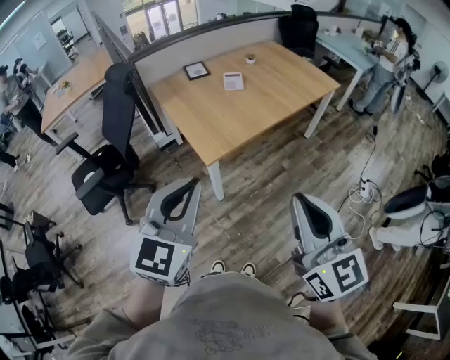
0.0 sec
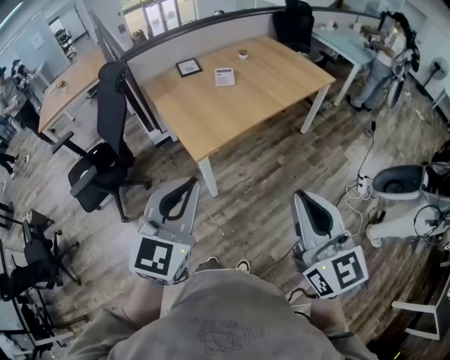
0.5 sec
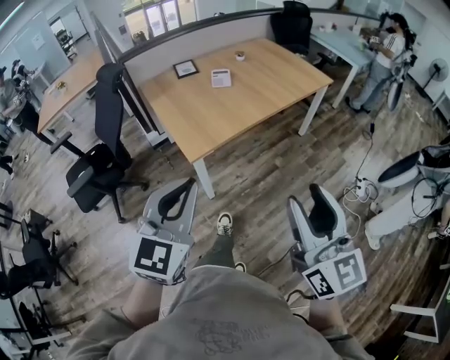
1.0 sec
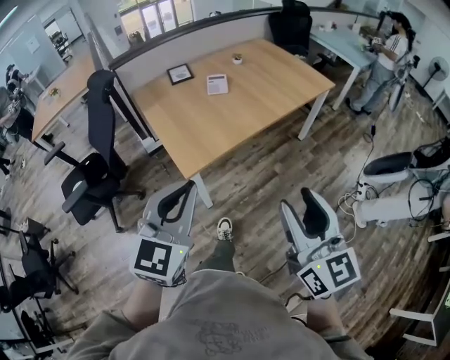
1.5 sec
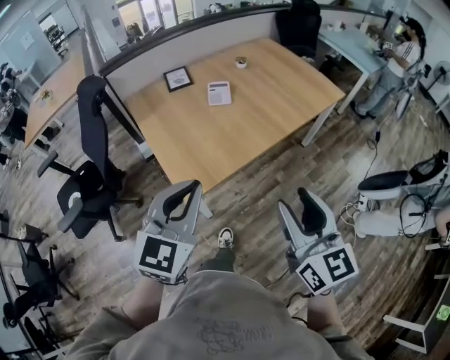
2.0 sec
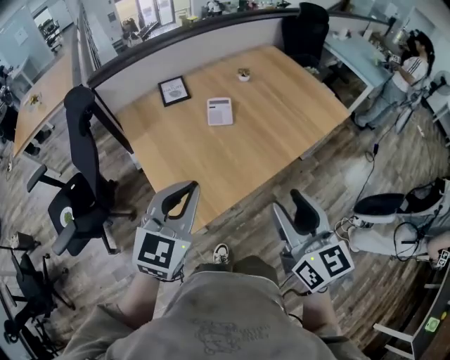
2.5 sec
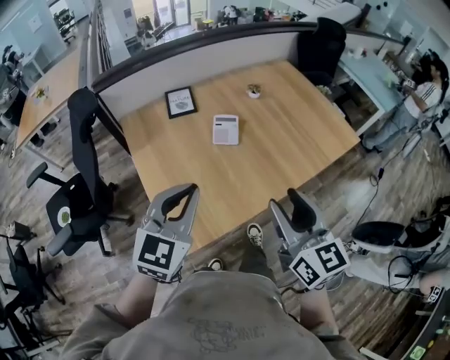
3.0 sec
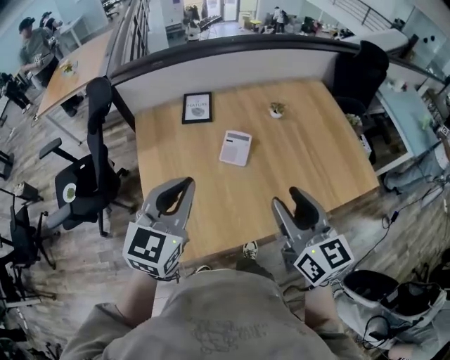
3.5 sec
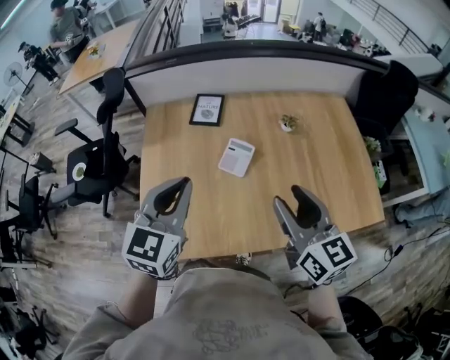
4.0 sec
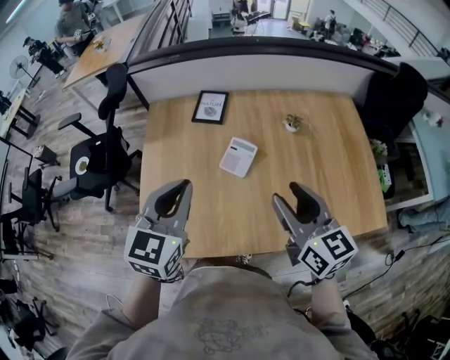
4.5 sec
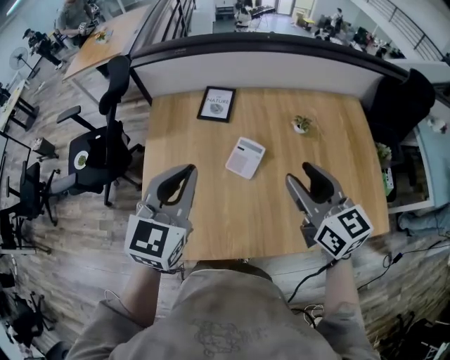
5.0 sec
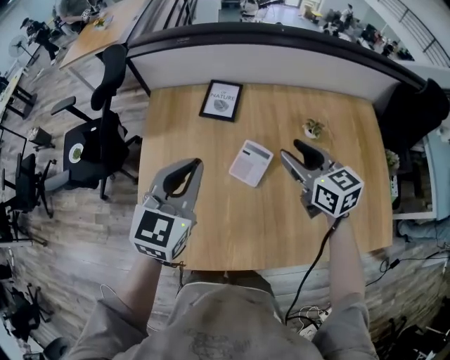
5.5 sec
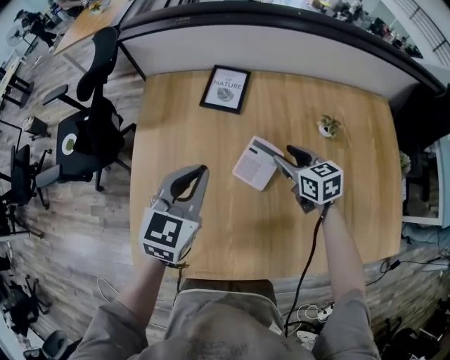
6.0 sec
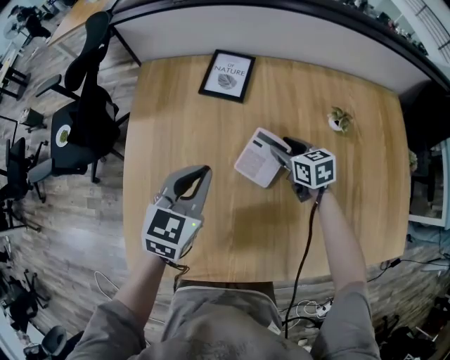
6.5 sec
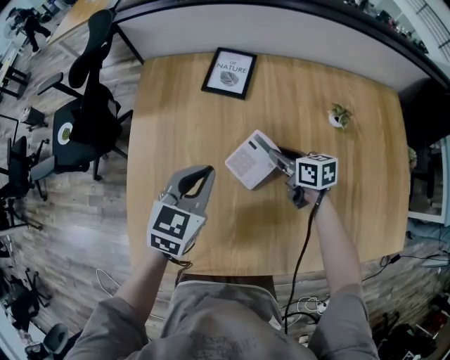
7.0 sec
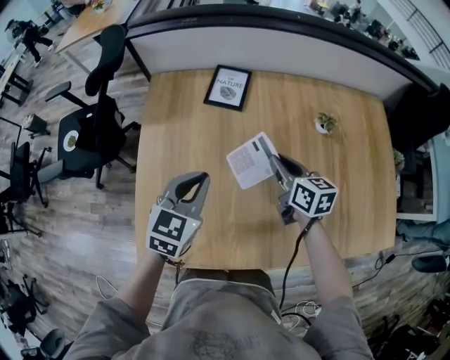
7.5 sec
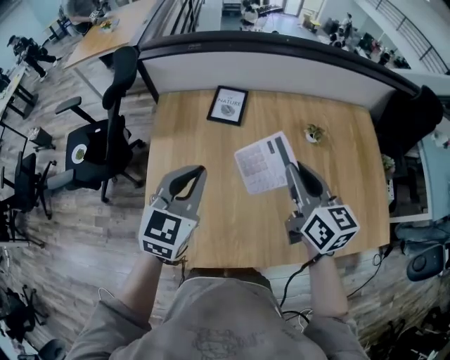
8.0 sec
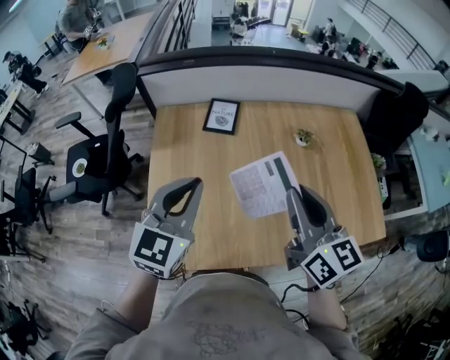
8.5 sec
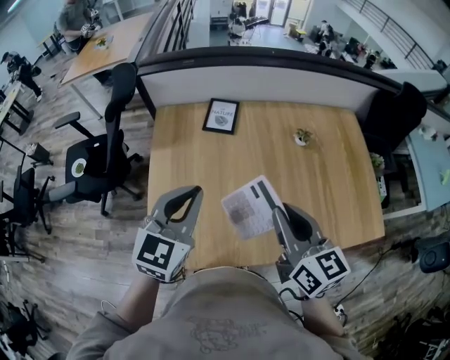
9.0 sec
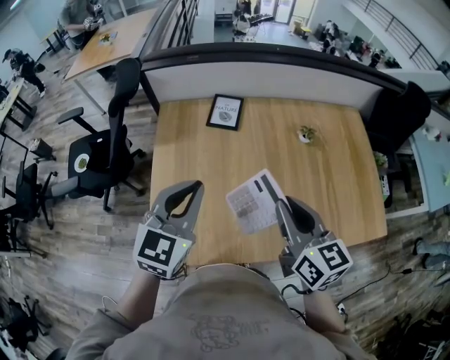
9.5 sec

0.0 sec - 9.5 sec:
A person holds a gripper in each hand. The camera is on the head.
0.0 sec - 2.0 sec: The grippers both shift forward by about 25 cm. The right gripper opens.
2.0 sec - 4.0 sec: The right gripper changes place by approximately 50 cm, and turns by about 30 degrees. The left gripper moves about 40 cm, and turns by approximately 30 degrees.
4.0 sec - 5.5 sec: The right gripper shifts approximately 25 cm forward and downward, while the left gripper is displaced forward and downward by about 15 cm.
5.5 sec - 7.5 sec: Both grippers travel together downward, some 10 cm. The right gripper changes its angle by about 20 degrees, and closes its fingers.
7.5 sec - 9.5 sec: Both grippers move upward and backward, about 25 cm.

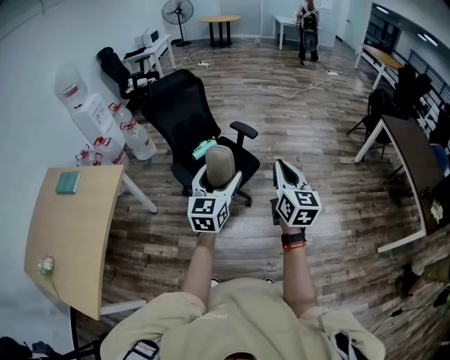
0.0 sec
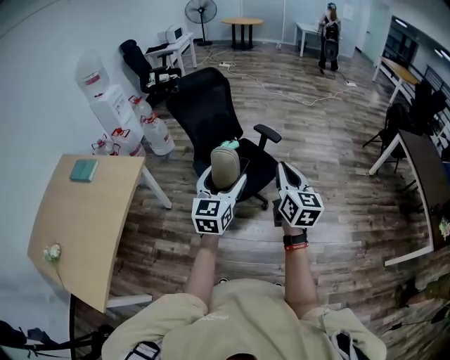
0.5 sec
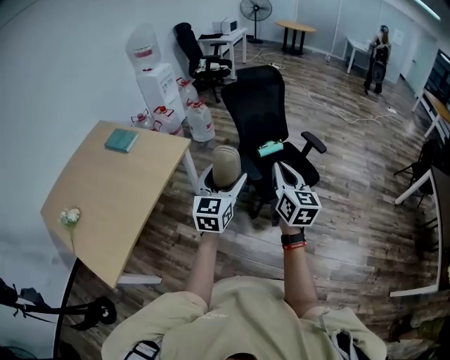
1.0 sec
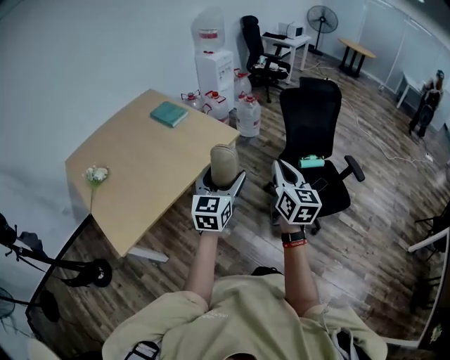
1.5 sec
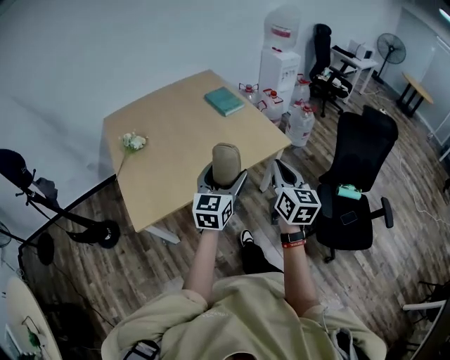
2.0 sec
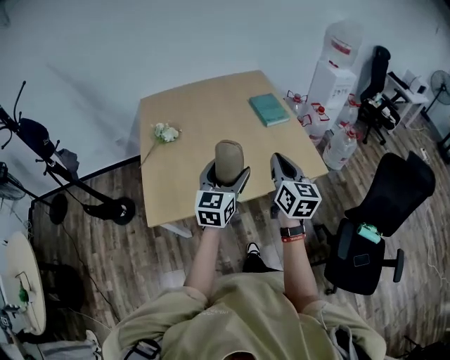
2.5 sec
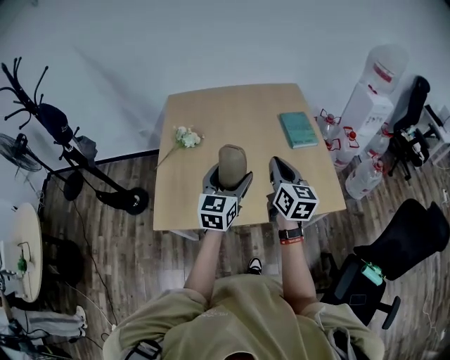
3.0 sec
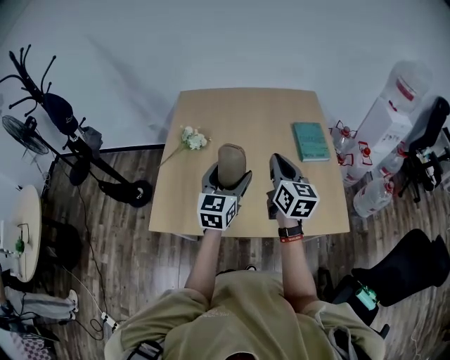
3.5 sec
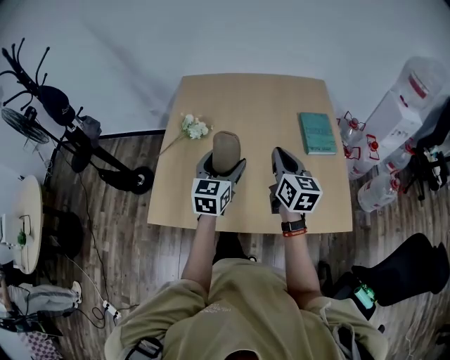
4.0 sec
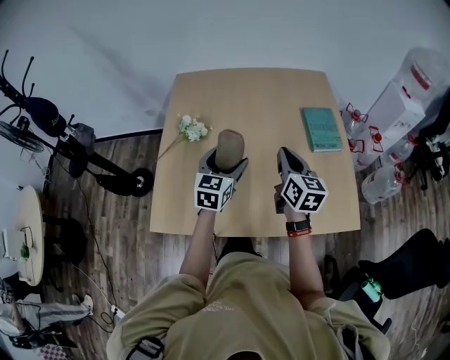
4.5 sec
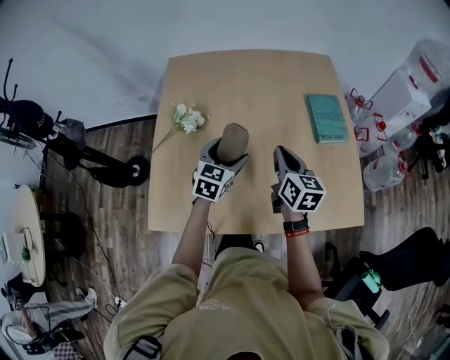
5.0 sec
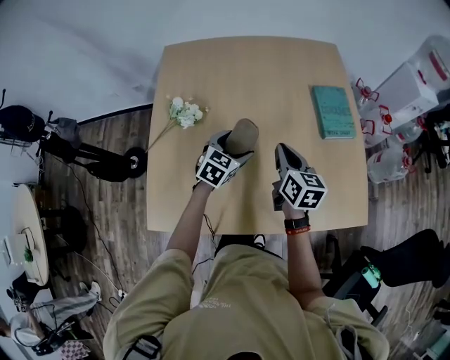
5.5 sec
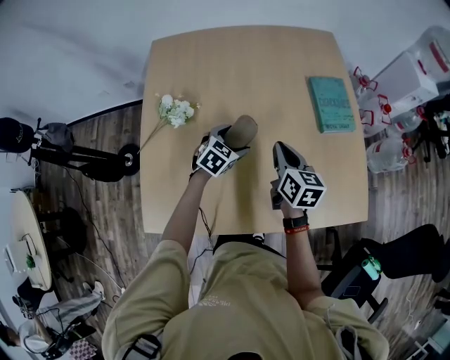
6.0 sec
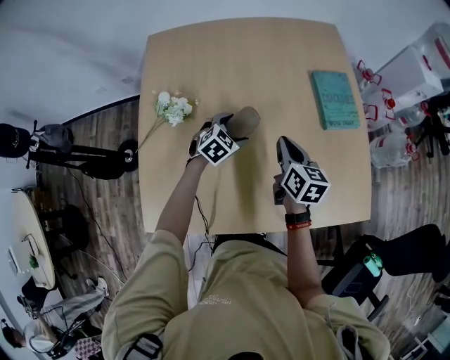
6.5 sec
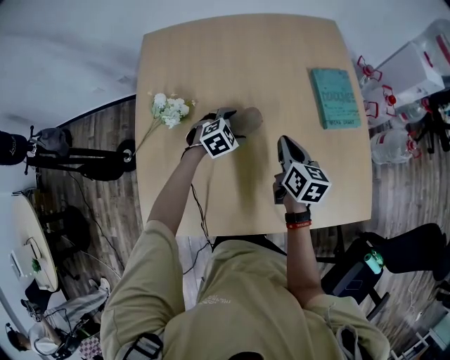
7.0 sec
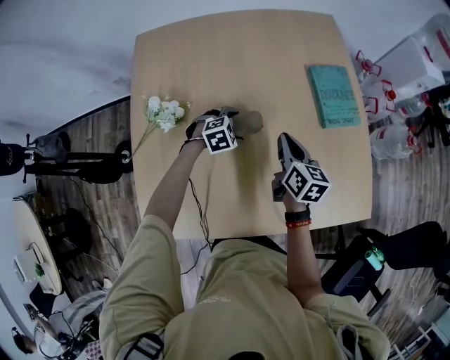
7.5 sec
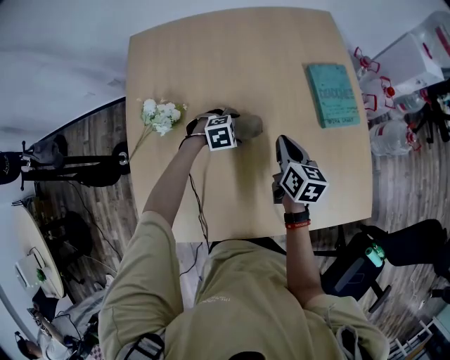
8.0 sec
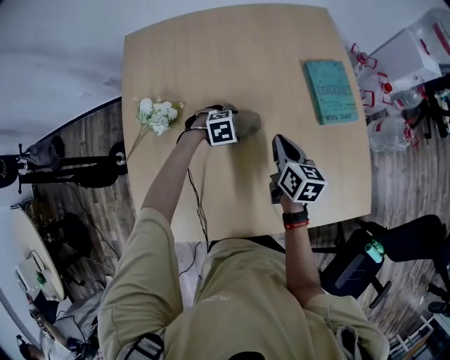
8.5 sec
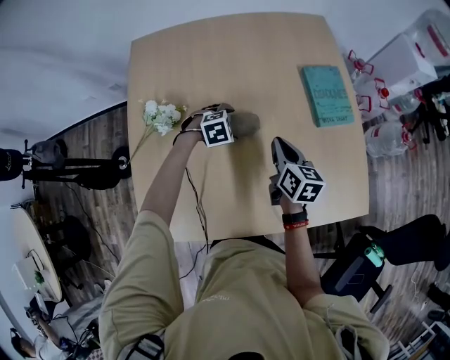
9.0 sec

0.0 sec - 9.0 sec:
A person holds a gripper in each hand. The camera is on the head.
0.0 sec - 2.0 sec: Both grippers are carried some 70 cm. The right gripper changes its angle by about 60 degrees. The left gripper swivels some 50 degrees.
2.0 sec - 4.5 sec: The two grippers travel together, approximately 50 cm. The right gripper turns by approximately 30 degrees. The left gripper swivels about 30 degrees.
4.5 sec - 7.0 sec: Both grippers travel together downward and forward, about 25 cm. The left gripper tips its fingers downward by about 40 degrees.

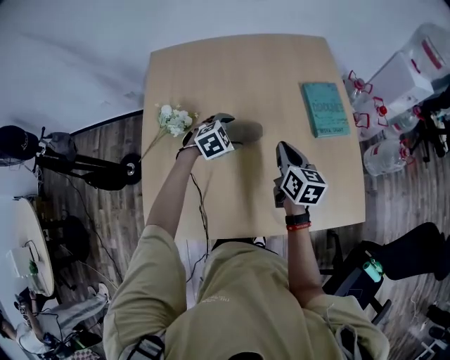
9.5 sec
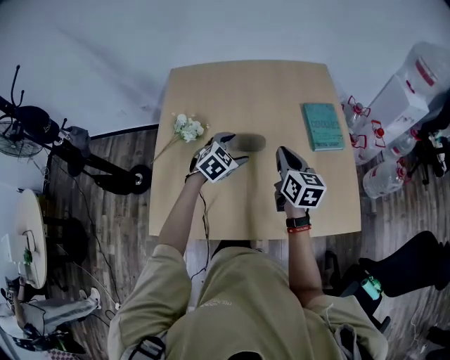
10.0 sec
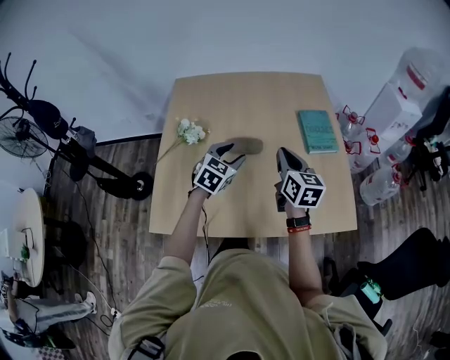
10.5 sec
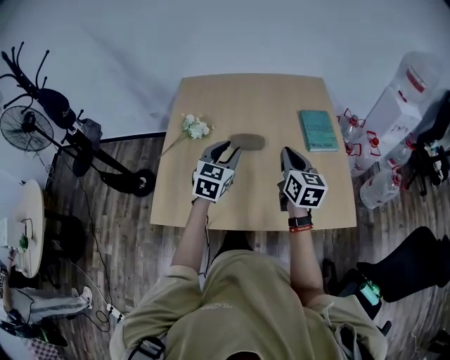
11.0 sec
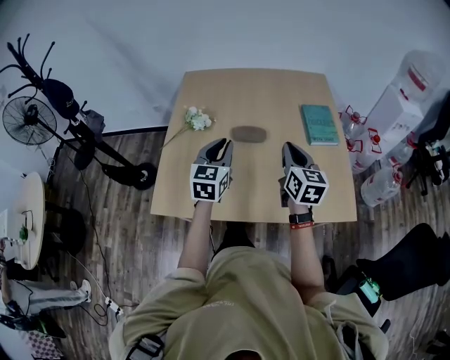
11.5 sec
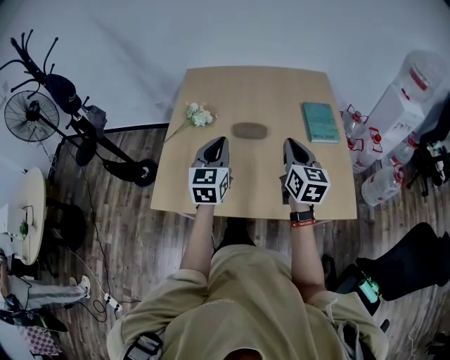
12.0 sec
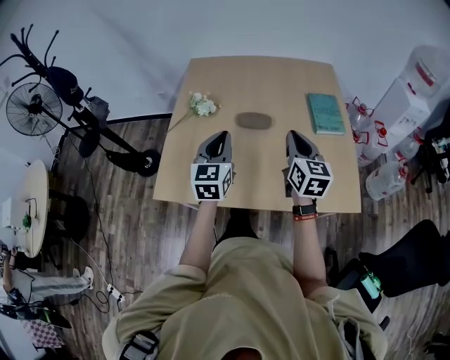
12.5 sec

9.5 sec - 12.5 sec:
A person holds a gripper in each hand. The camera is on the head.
9.5 sec - 11.0 sec: The left gripper shifts roughly 30 cm upward and backward, points its fingers some 40 degrees further upward, and closes; the right gripper moves backward and upward, about 20 cm.
11.0 sec - 12.5 sec: The left gripper travels backward by some 10 cm, and rotates roughly 20 degrees.

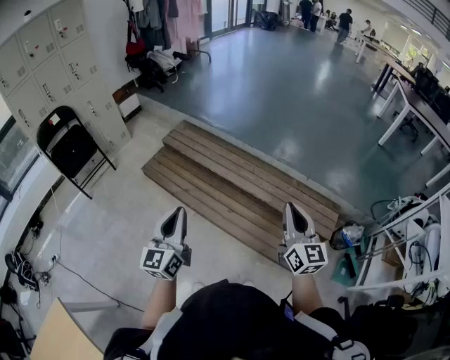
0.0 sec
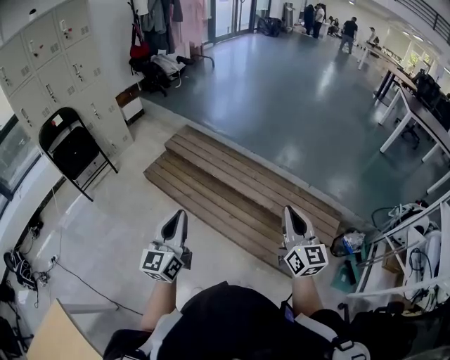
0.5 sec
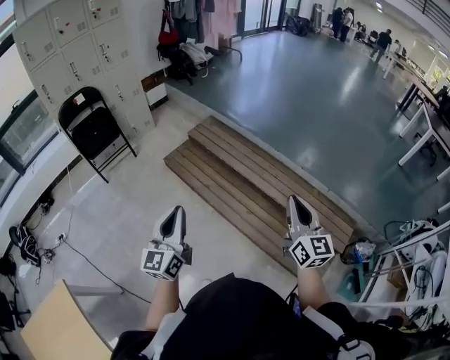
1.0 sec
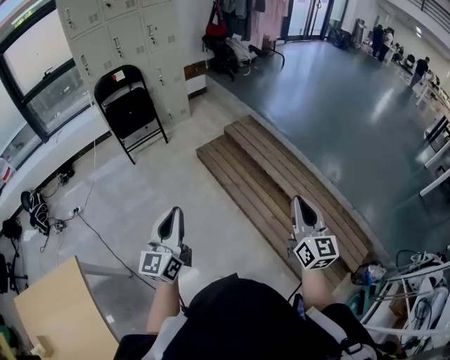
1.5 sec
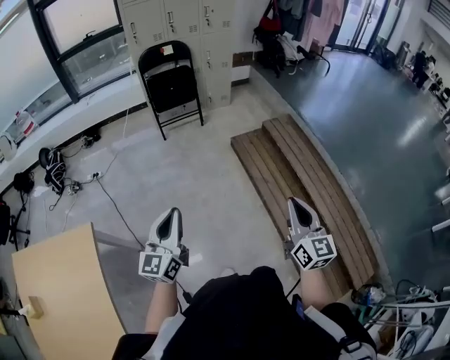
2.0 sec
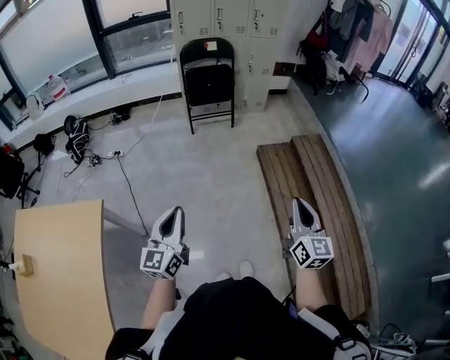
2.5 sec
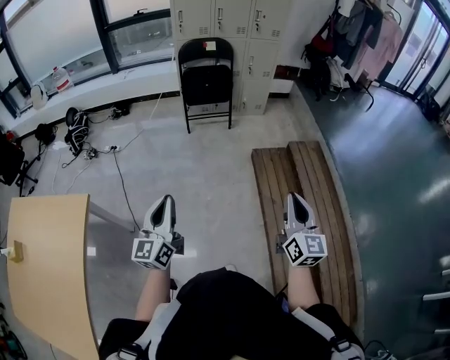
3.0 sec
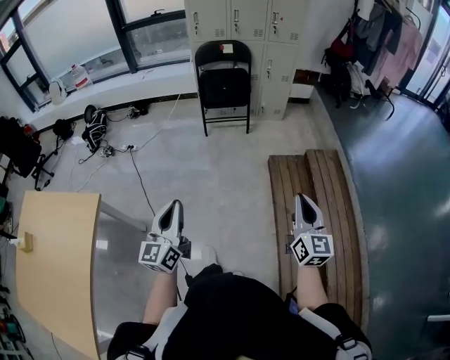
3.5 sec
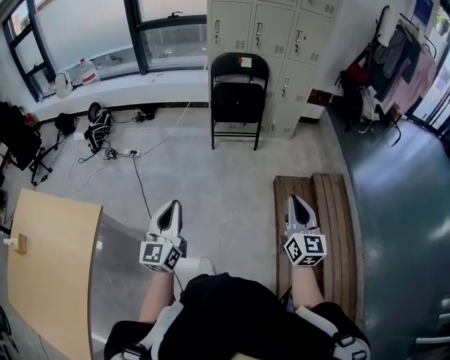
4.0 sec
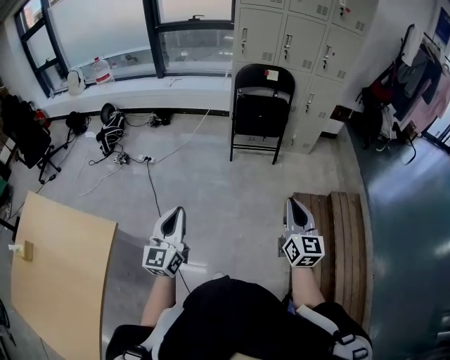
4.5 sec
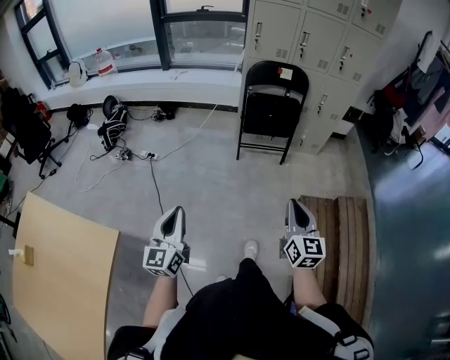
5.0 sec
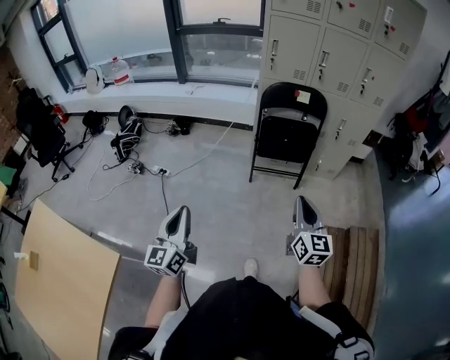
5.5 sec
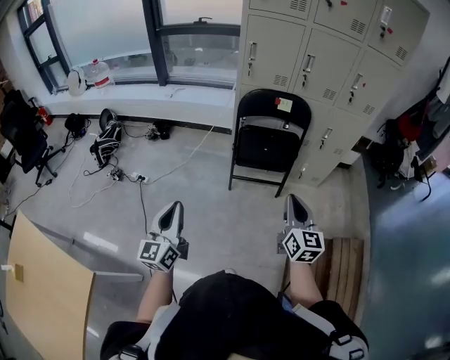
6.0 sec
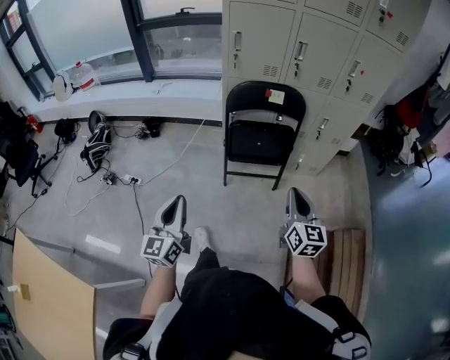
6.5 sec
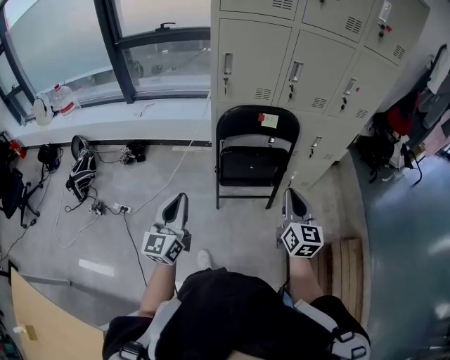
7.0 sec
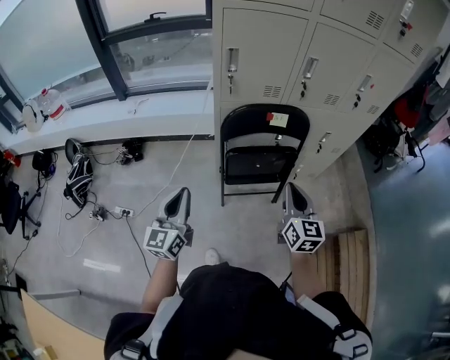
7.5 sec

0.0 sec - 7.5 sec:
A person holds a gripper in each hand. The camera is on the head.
0.0 sec - 2.0 sec: The right gripper changes place by roughly 40 cm, and swivels roughly 40 degrees, while the left gripper shifts by approximately 35 cm, and swivels about 40 degrees.
2.0 sec - 4.0 sec: The left gripper goes approximately 15 cm forward, and swivels some 30 degrees. Meanwhile the right gripper is displaced forward by approximately 30 cm.
4.0 sec - 5.5 sec: The right gripper travels forward by some 35 cm; the left gripper heads forward and to the left, covering approximately 30 cm.
5.5 sec - 7.5 sec: The grippers both shift forward by some 40 cm.
